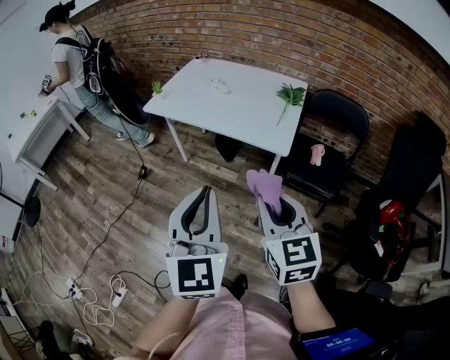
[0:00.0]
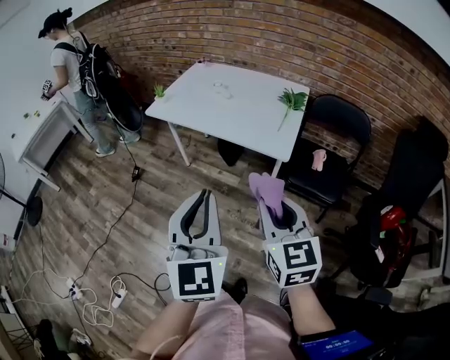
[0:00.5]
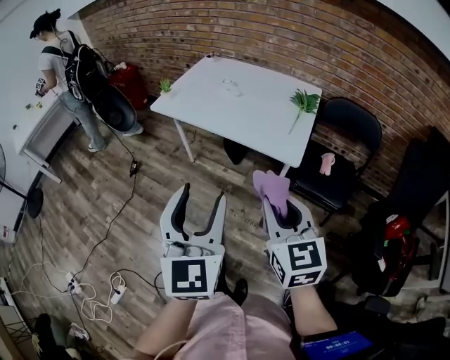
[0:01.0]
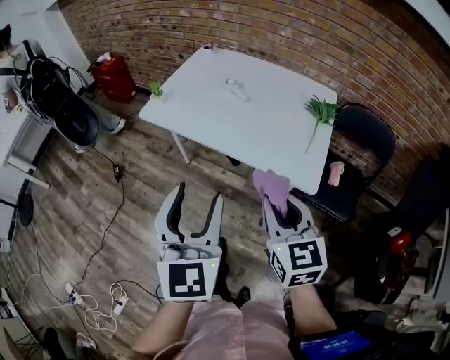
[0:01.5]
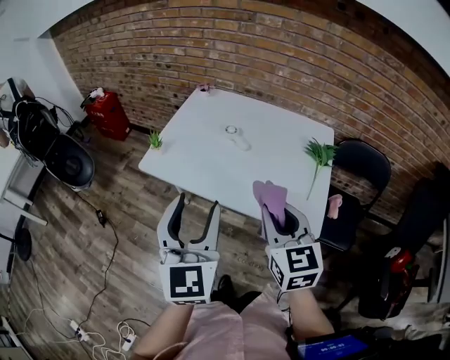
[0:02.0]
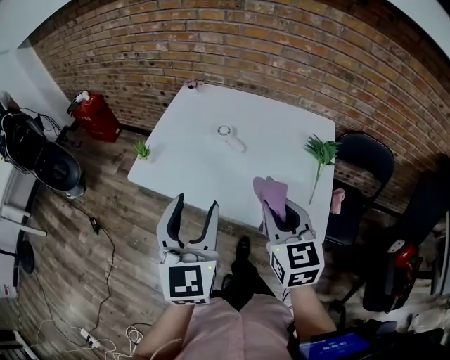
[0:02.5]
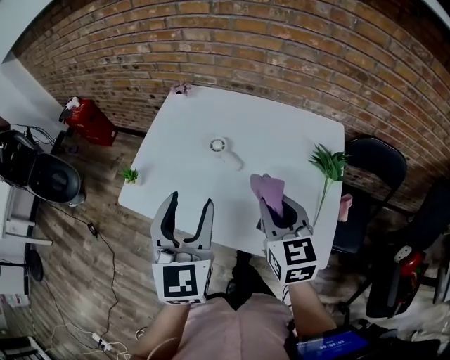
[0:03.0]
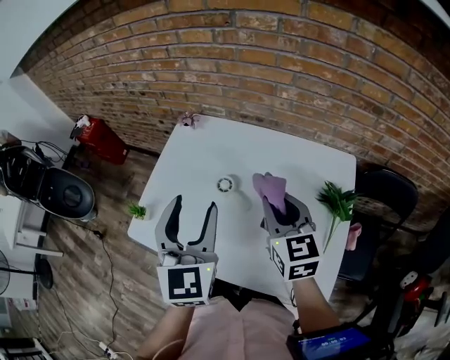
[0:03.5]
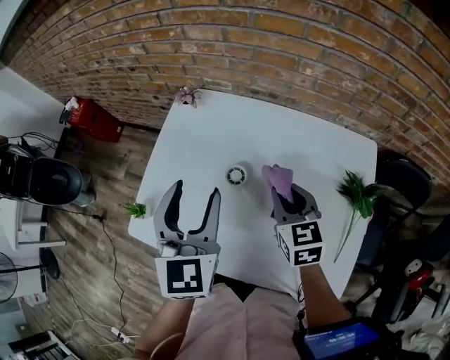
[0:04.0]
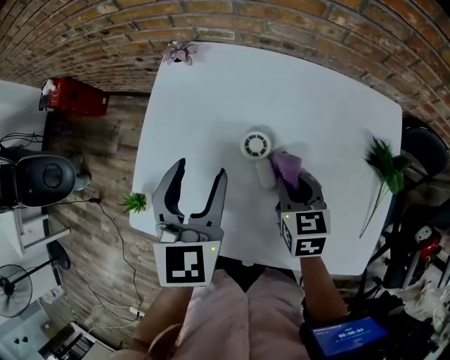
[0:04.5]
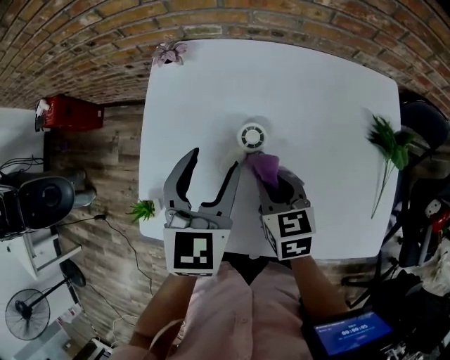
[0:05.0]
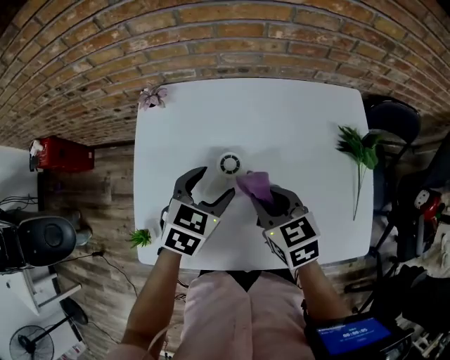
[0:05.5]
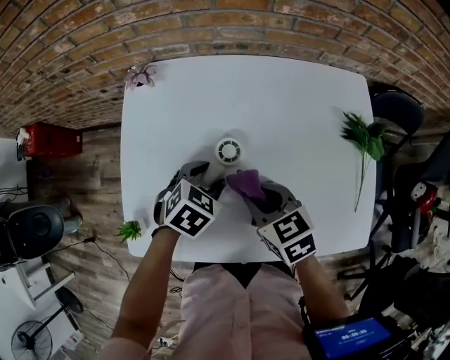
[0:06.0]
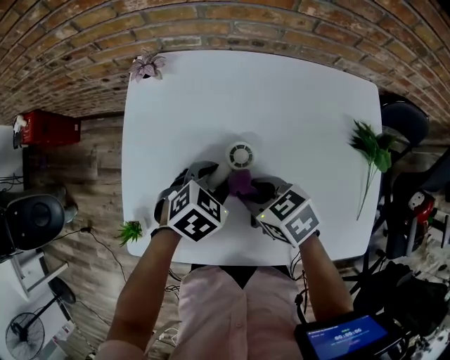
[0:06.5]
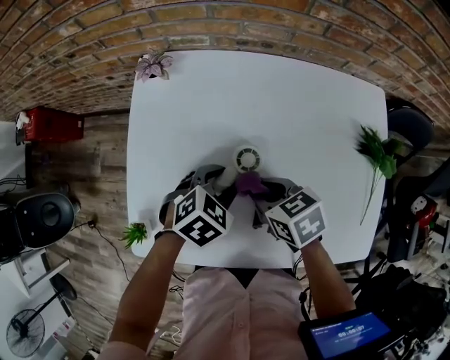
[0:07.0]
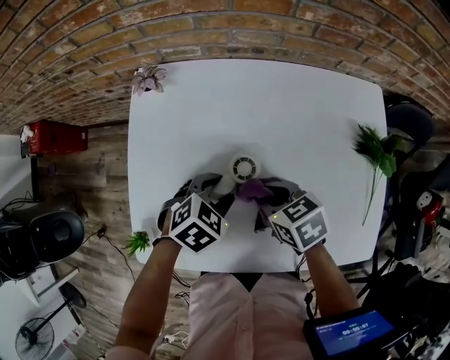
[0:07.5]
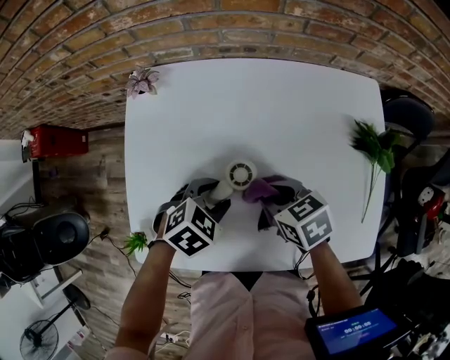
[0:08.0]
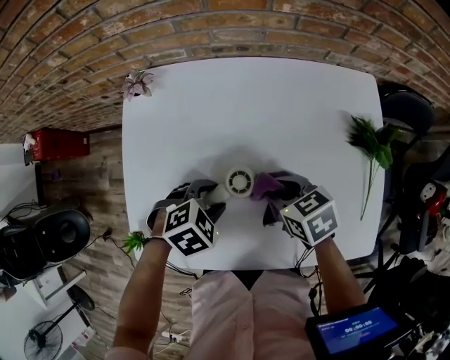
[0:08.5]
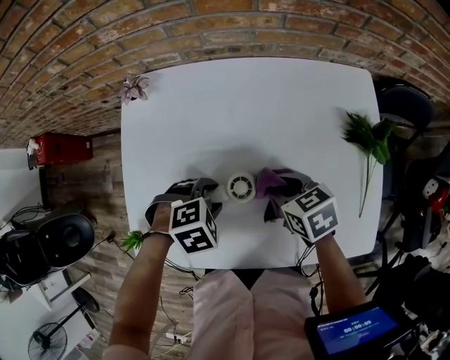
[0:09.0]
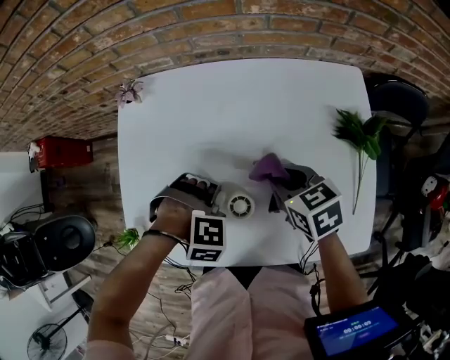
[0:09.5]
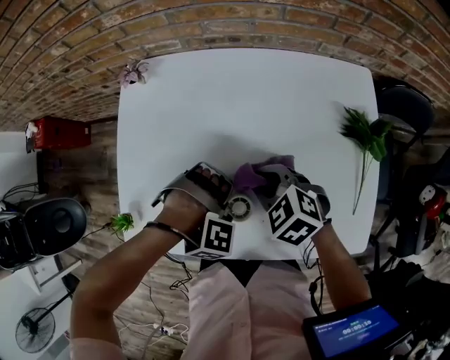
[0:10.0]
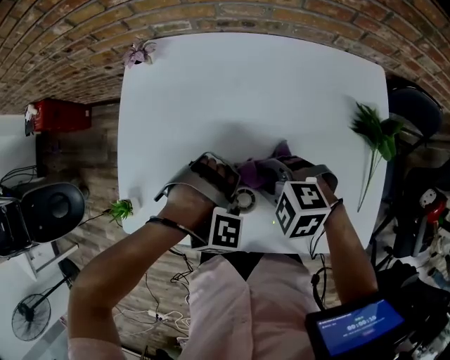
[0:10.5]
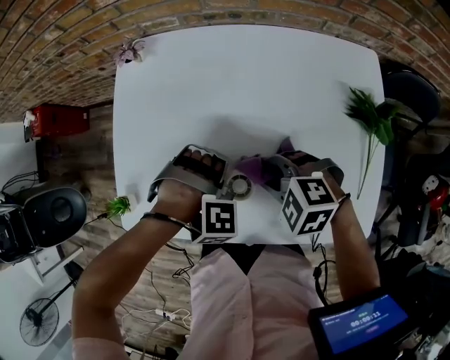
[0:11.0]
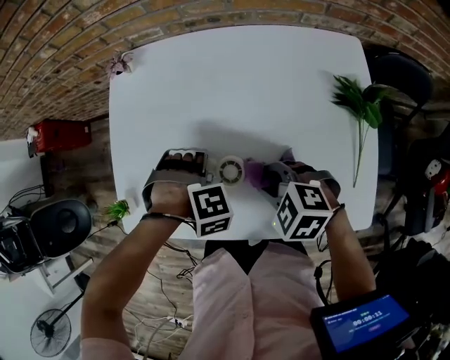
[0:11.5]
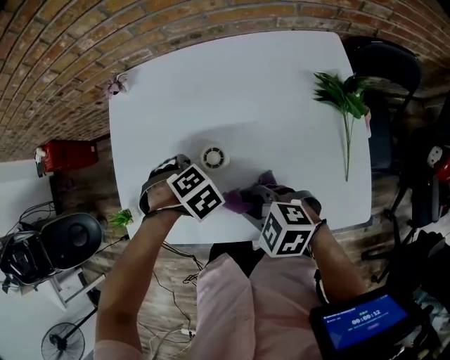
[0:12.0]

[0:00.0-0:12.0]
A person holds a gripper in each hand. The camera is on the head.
0.0 to 2.0 s: Both grippers travel together forward, roughly 35 cm. The left gripper opens up.
2.0 to 4.0 s: The left gripper is displaced forward by roughly 35 cm, while the right gripper moves forward and downward, approximately 35 cm.
4.0 to 6.0 s: The left gripper travels downward by approximately 25 cm, and angles its fingers downward, by about 40 degrees. Meanwhile the right gripper heads to the left, downward and backward, covering approximately 15 cm.
6.0 to 8.0 s: The grippers stay close to where they were, moving slightly.
8.0 to 10.0 s: The right gripper swivels some 40 degrees; the left gripper ends up about 5 cm from where it was, and rolls clockwise, seen from behind, by roughly 70 degrees.
10.0 to 12.0 s: The left gripper rolls counterclockwise, seen from behind, by approximately 60 degrees. The right gripper shifts by roughly 10 cm.

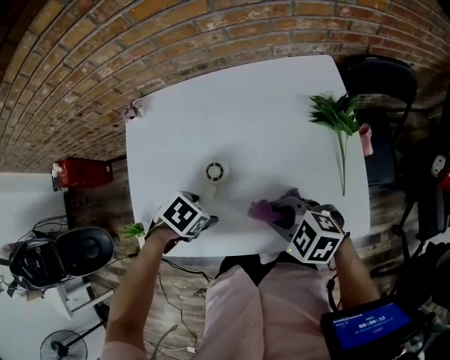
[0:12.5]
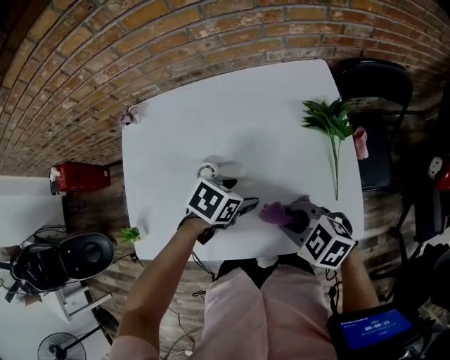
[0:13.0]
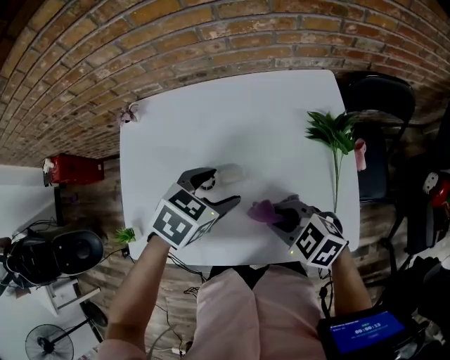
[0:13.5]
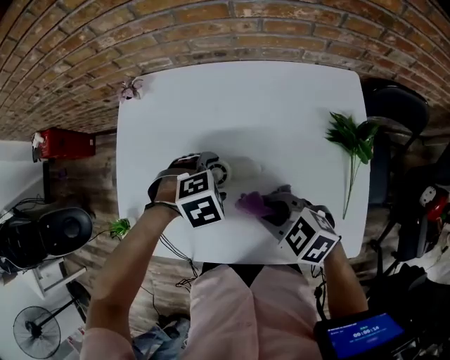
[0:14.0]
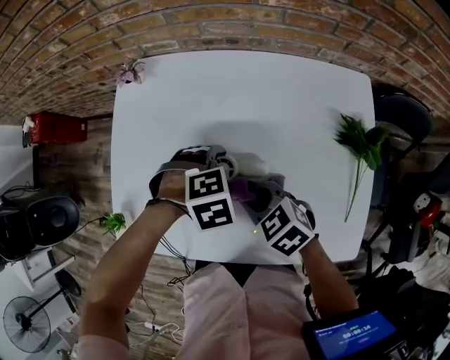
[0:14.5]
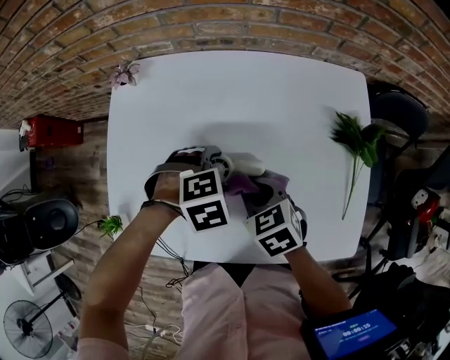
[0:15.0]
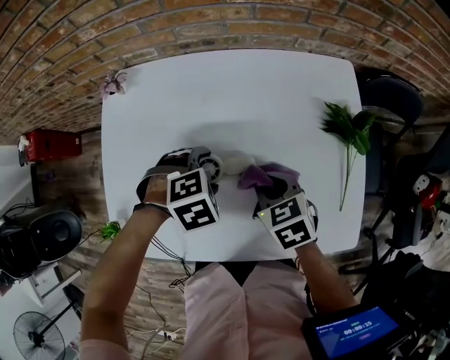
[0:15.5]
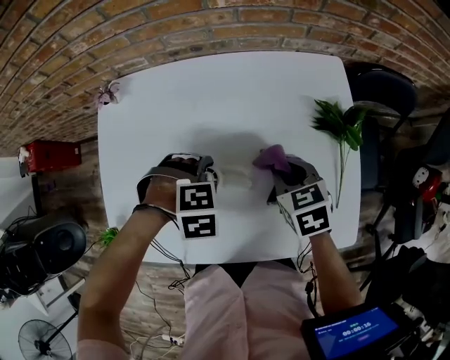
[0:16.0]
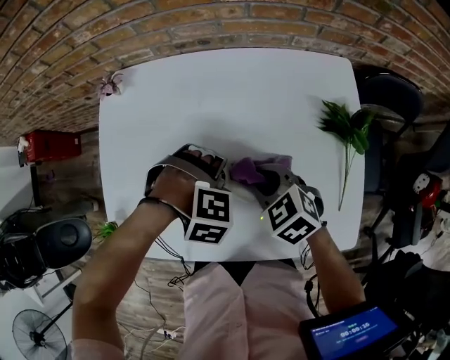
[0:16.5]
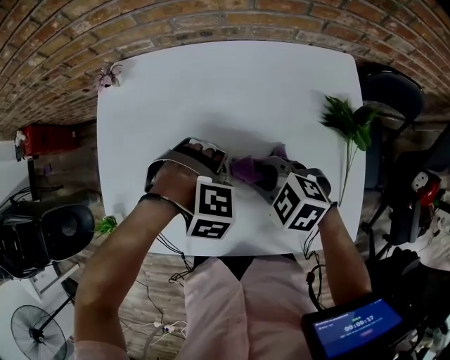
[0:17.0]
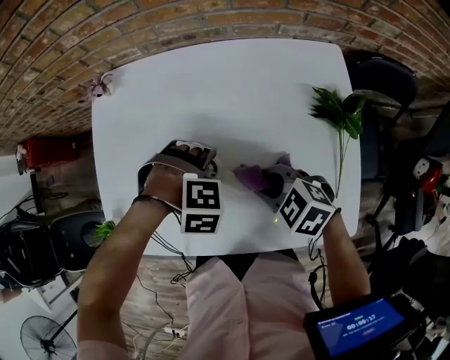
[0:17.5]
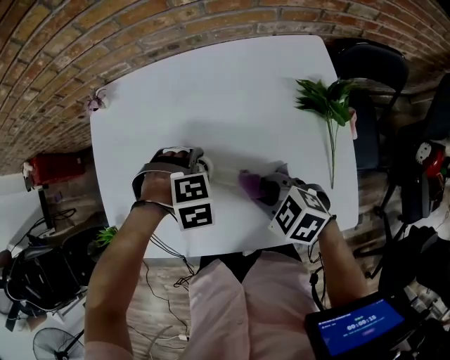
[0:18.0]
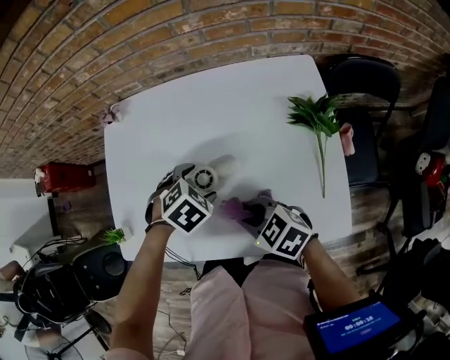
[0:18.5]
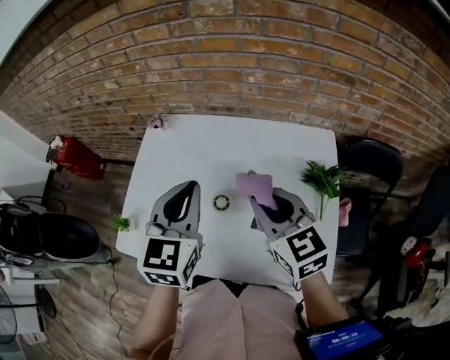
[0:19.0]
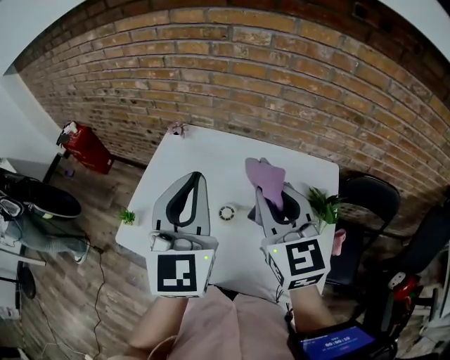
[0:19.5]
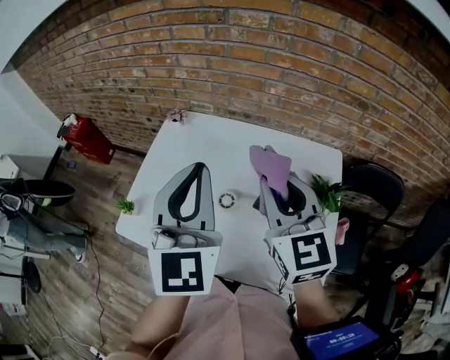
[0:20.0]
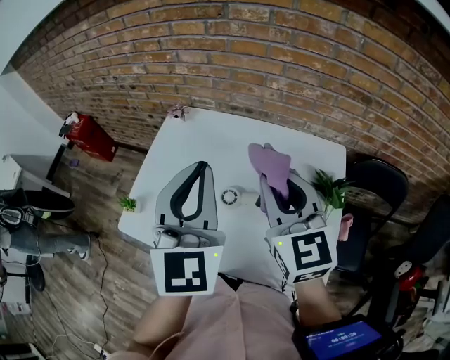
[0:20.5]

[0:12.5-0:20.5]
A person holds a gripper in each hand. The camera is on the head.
12.5 to 14.5 s: The right gripper changes place by about 15 cm. Meanwhile the left gripper goes upward and returns, approximately 10 cm each way, and turns by roughly 40 degrees.
14.5 to 16.5 s: The left gripper turns by approximately 40 degrees.
16.5 to 18.5 s: The left gripper twists about 50 degrees counterclockwise, seen from behind. The right gripper changes place by roughly 10 cm.
18.5 to 20.5 s: The two grippers go roughly 30 cm upward. The left gripper tilts its fingers some 80 degrees upward, and closes up. Meanwhile the right gripper points its fingers roughly 30 degrees further upward.

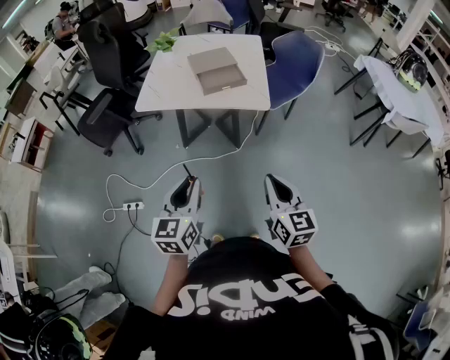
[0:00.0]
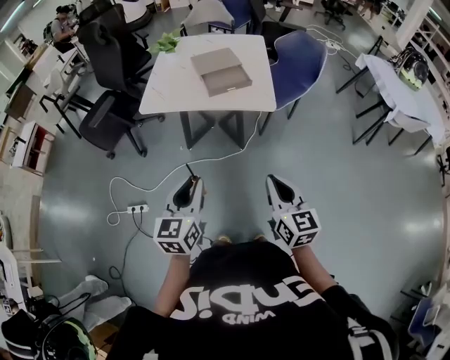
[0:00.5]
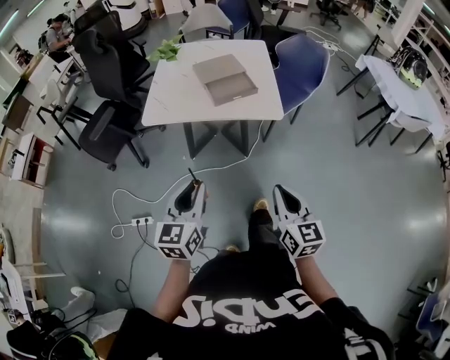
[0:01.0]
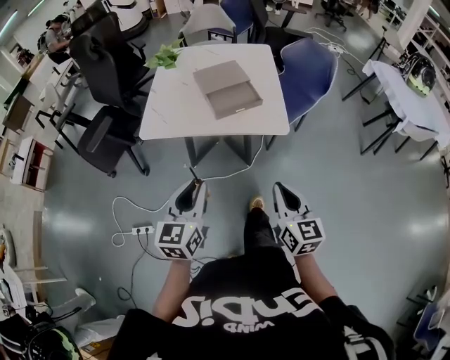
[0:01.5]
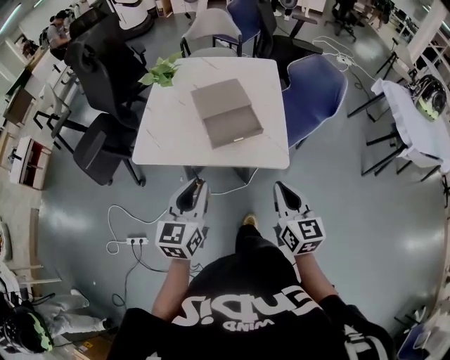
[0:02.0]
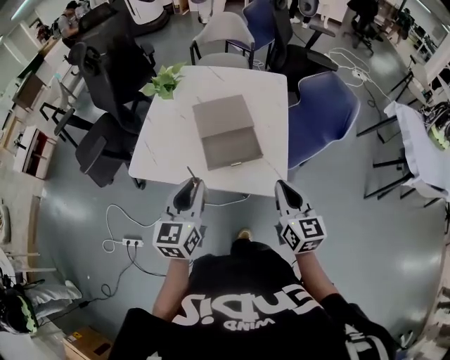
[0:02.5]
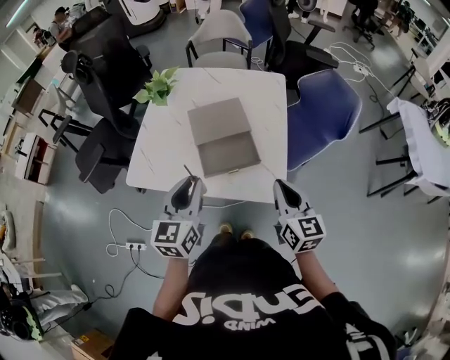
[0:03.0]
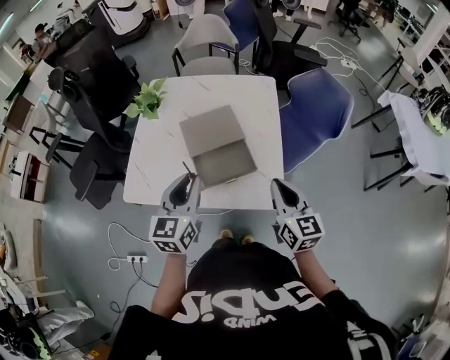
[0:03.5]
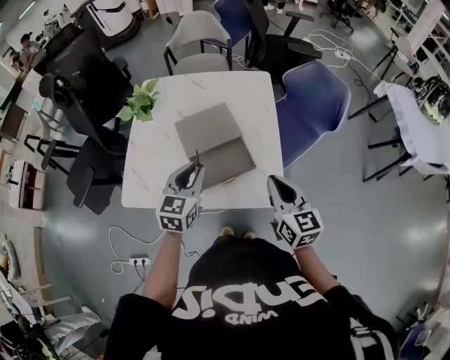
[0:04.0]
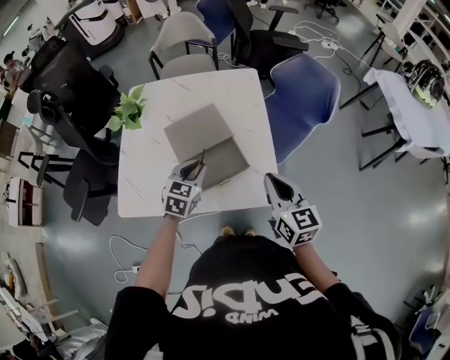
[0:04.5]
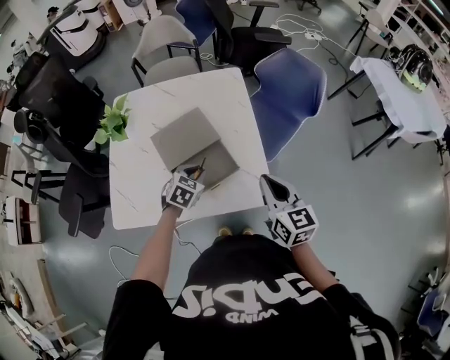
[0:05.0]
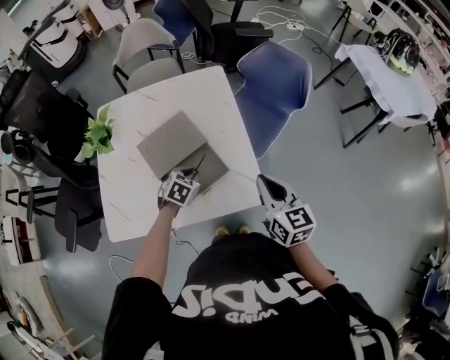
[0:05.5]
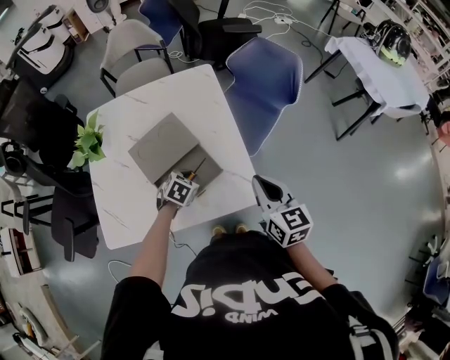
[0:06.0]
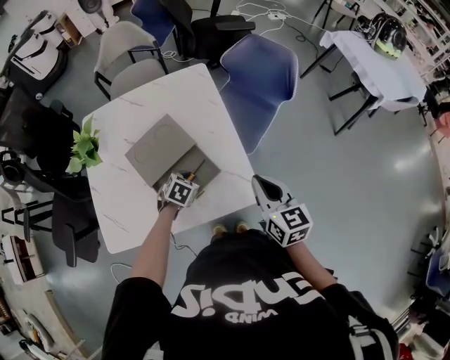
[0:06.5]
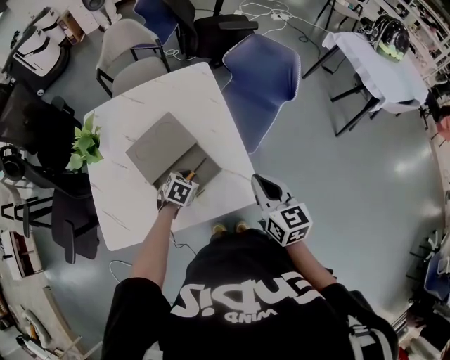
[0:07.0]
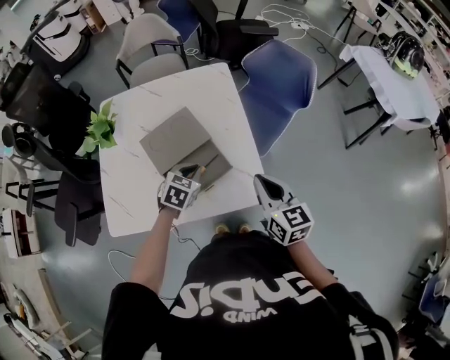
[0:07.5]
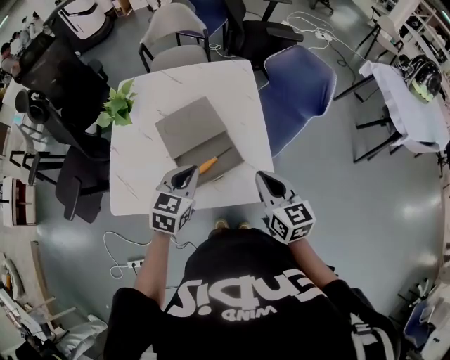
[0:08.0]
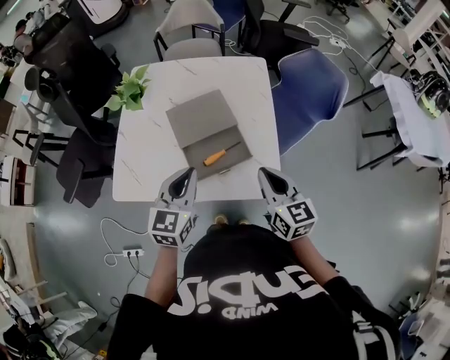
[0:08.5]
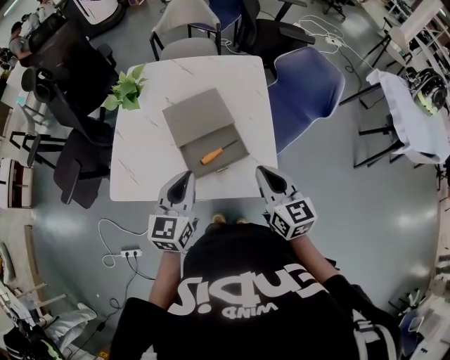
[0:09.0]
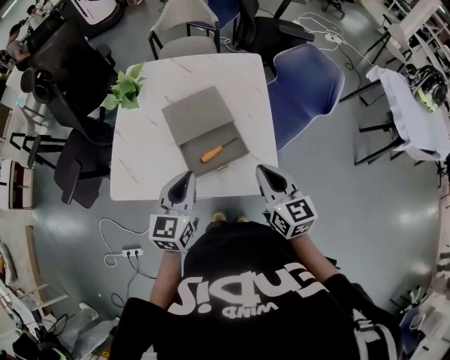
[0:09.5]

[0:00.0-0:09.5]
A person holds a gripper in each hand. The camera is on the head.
0.0 to 2.0 s: The grippers both shift forward by about 30 cm.
2.0 to 4.0 s: The two grippers go approximately 25 cm forward.
4.0 to 5.5 s: The right gripper shifts by some 5 cm. Meanwhile the left gripper heads downward and forward, covering approximately 20 cm, and tips its fingers downward by some 40 degrees.
5.5 to 7.5 s: The left gripper is displaced upward by about 5 cm.
7.5 to 9.5 s: The right gripper travels to the left by roughly 5 cm; the left gripper travels upward, backward and to the left by approximately 20 cm, and tips its fingers upward by roughly 40 degrees.
